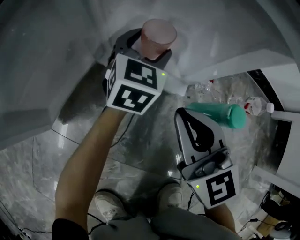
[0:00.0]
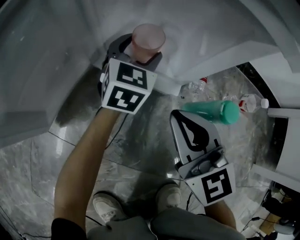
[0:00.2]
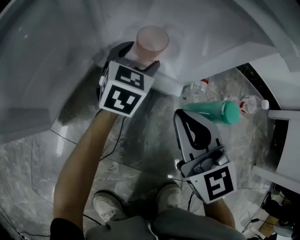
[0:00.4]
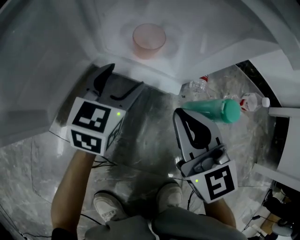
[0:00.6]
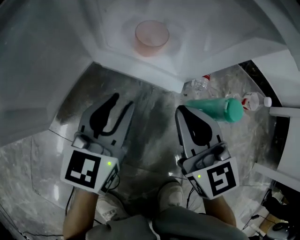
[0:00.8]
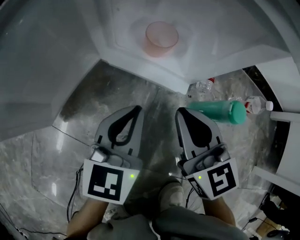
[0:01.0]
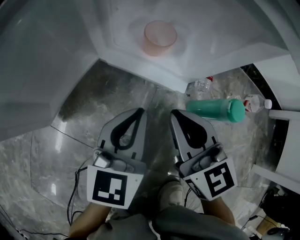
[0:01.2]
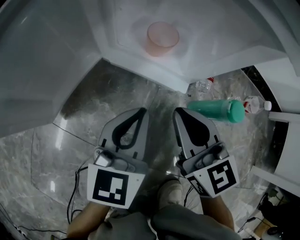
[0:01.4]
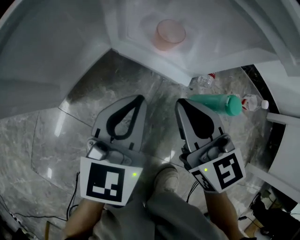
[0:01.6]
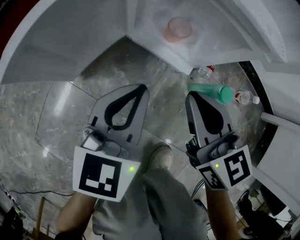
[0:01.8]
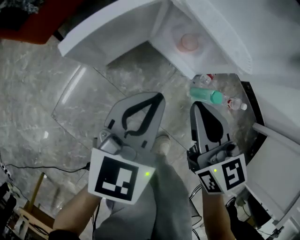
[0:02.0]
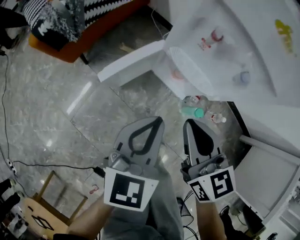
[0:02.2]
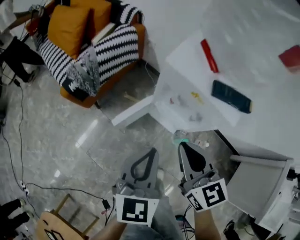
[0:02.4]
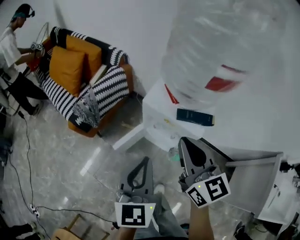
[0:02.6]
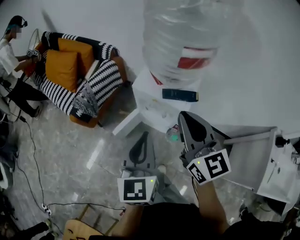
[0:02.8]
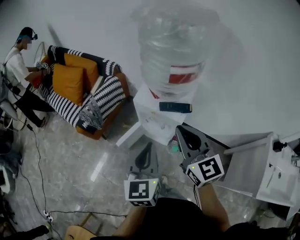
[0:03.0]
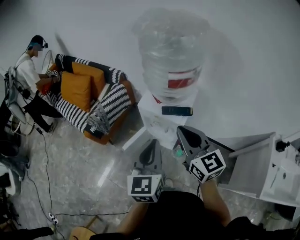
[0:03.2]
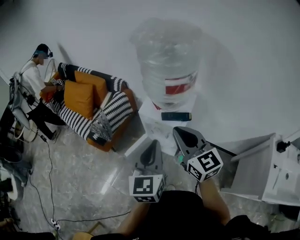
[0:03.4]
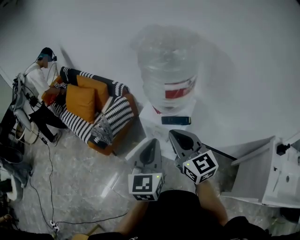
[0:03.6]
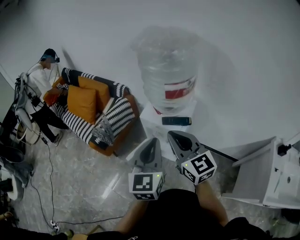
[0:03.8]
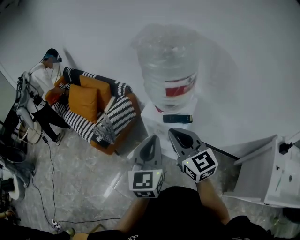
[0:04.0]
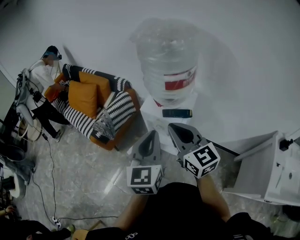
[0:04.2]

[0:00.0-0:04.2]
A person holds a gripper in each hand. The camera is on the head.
0:00.0 to 0:01.4: The left gripper moves backward, roughly 20 cm, swivels roughly 20 degrees, and closes.
0:01.4 to 0:02.8: Both grippers travel together upward, approximately 90 cm. The left gripper swivels roughly 20 degrees.
0:02.8 to 0:04.2: The right gripper moves backward, roughly 5 cm. The left gripper shifts roughly 10 cm upward.

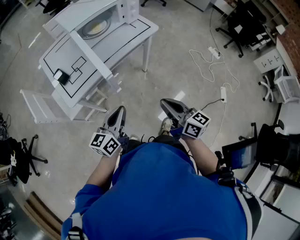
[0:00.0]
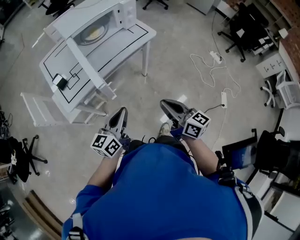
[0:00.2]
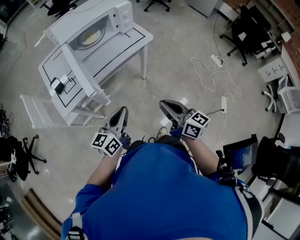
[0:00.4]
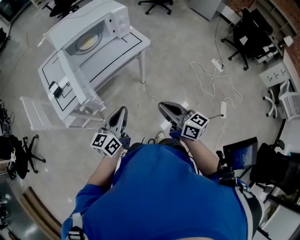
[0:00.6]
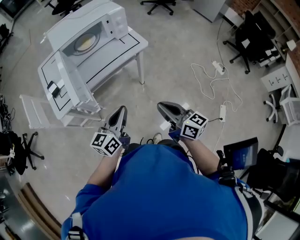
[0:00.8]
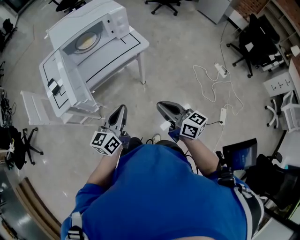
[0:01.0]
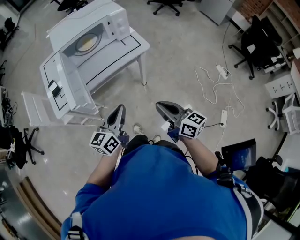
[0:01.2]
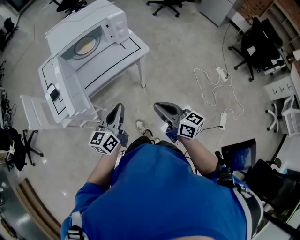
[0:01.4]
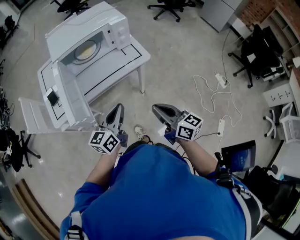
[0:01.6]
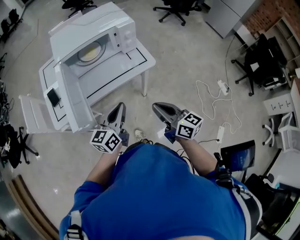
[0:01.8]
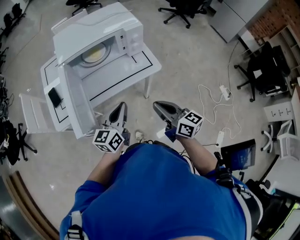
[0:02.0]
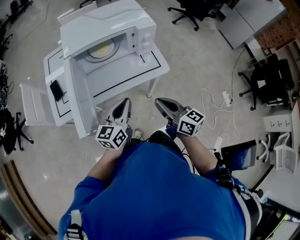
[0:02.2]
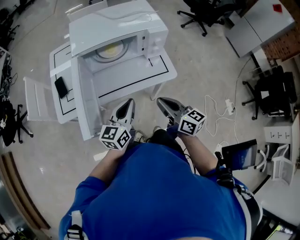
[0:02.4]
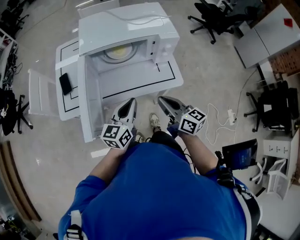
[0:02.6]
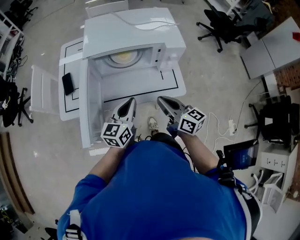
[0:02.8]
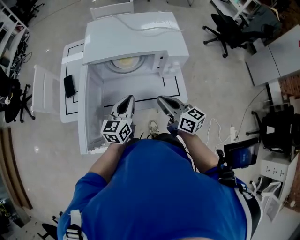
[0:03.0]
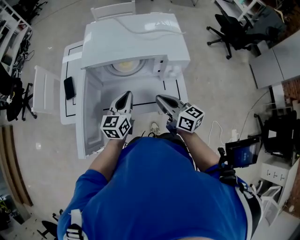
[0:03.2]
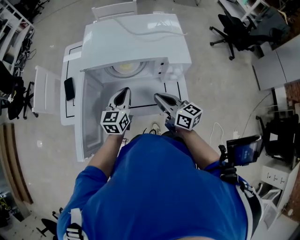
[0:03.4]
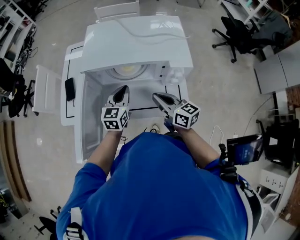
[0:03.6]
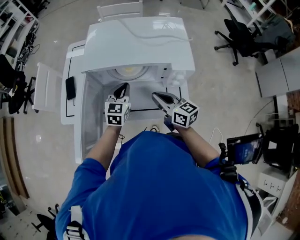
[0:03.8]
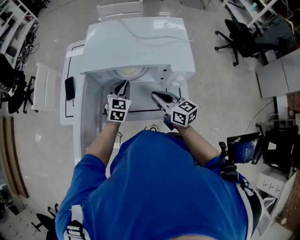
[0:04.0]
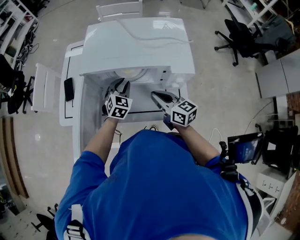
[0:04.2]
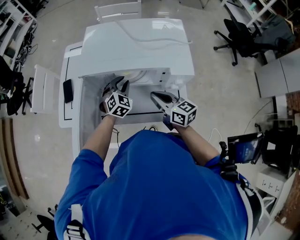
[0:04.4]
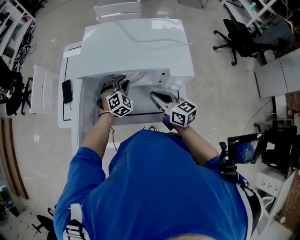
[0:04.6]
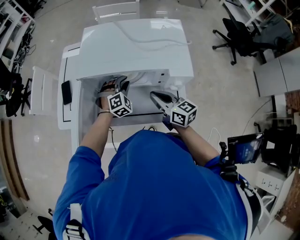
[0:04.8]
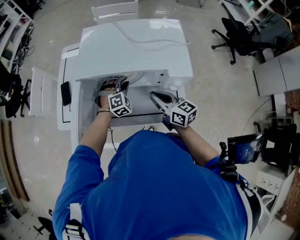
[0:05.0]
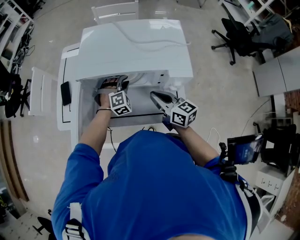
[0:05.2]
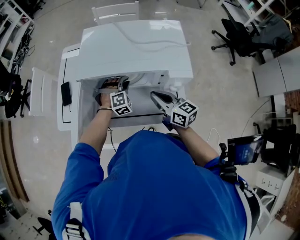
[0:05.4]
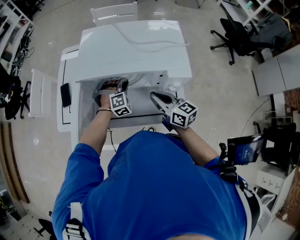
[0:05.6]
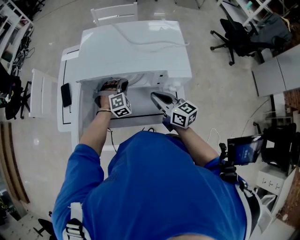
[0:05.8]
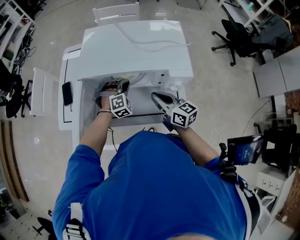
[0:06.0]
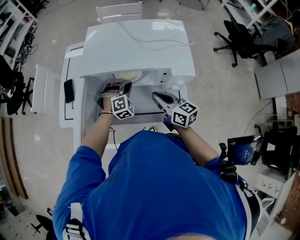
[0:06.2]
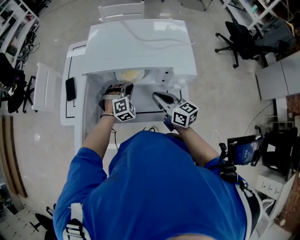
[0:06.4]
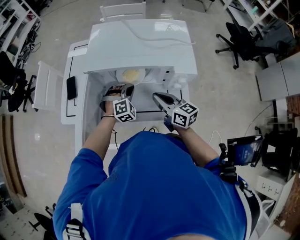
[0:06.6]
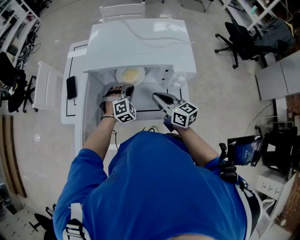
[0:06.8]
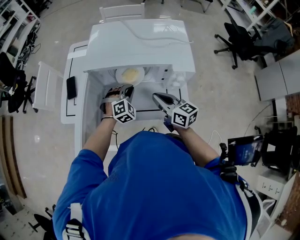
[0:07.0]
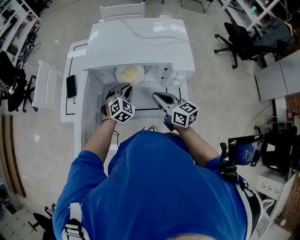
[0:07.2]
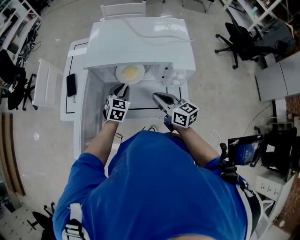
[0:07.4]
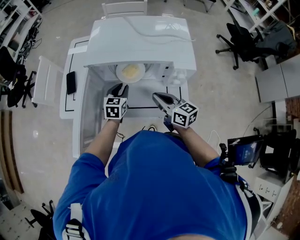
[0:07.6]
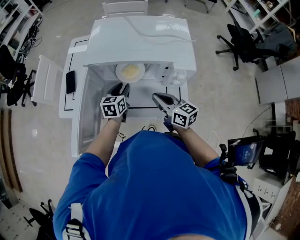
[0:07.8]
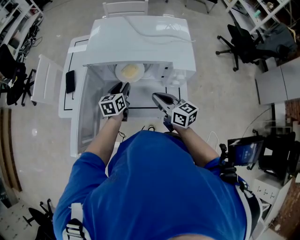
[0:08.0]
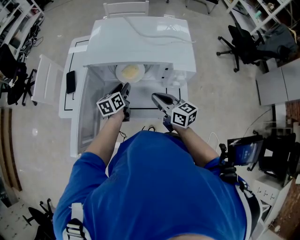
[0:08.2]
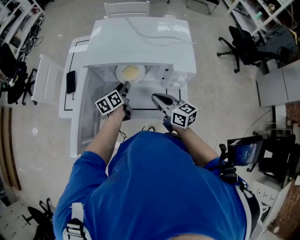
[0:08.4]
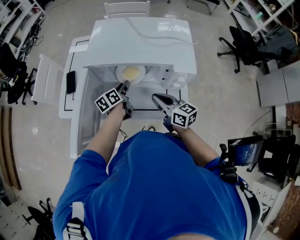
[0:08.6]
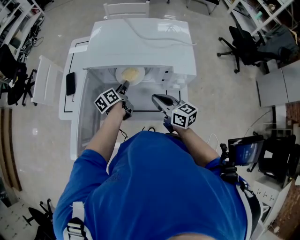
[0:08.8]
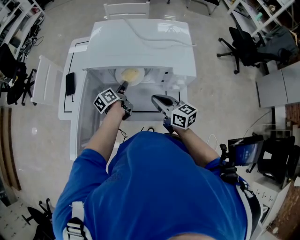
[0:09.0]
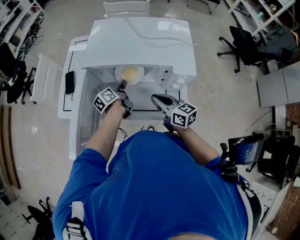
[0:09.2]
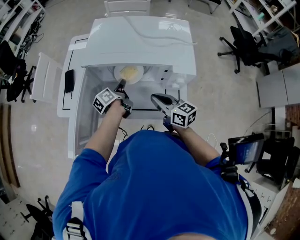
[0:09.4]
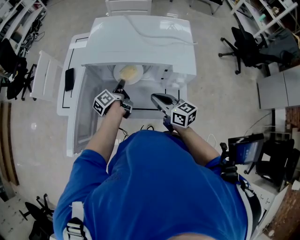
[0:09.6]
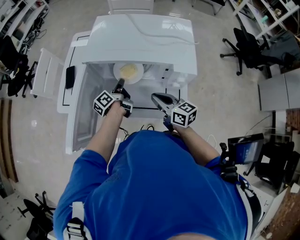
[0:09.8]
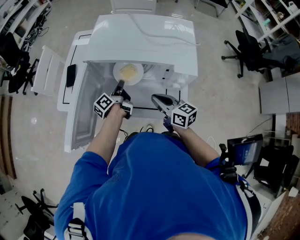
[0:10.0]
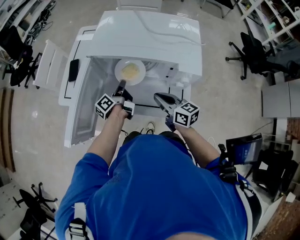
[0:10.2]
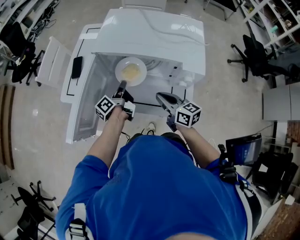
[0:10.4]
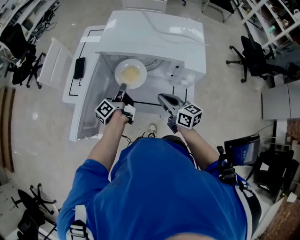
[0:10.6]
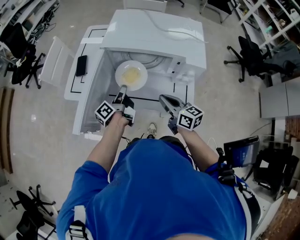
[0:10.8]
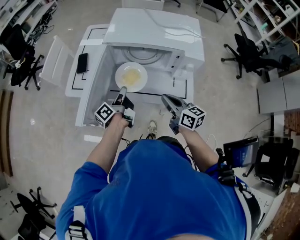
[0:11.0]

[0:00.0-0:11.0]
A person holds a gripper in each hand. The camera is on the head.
0:00.0 to 0:01.6: Both grippers travel together to the right and forward, about 25 cm.
0:01.6 to 0:03.2: The right gripper ends up approximately 30 cm from where it was, and turns by roughly 20 degrees. The left gripper moves about 25 cm, and changes its angle by approximately 30 degrees.
0:03.2 to 0:04.8: The left gripper goes roughly 15 cm forward, downward and to the right, and rolls clockwise, seen from behind, by roughly 70 degrees; the right gripper is displaced forward by approximately 10 cm.
0:04.8 to 0:06.2: The grippers move only a little.
0:06.2 to 0:07.8: The left gripper is displaced to the left by approximately 5 cm, rolls counterclockwise, seen from behind, by approximately 80 degrees, and opens.
0:07.8 to 0:09.4: The left gripper rolls counterclockwise, seen from behind, by some 50 degrees.
0:09.4 to 0:11.0: The left gripper is displaced backward and to the left by about 15 cm, and changes its angle by approximately 20 degrees. Meanwhile the right gripper travels backward by about 10 cm.

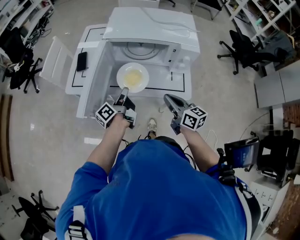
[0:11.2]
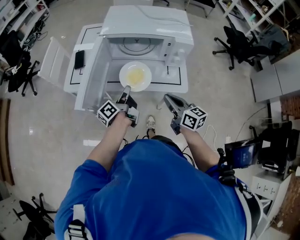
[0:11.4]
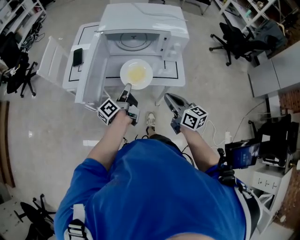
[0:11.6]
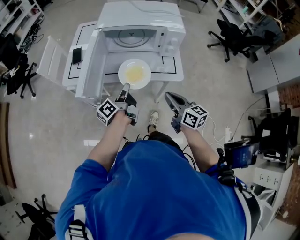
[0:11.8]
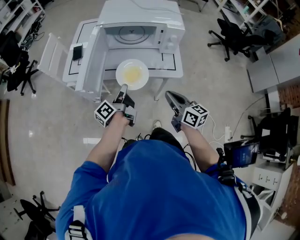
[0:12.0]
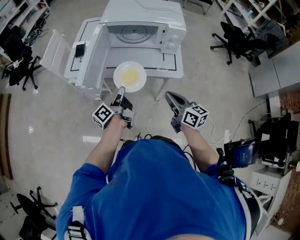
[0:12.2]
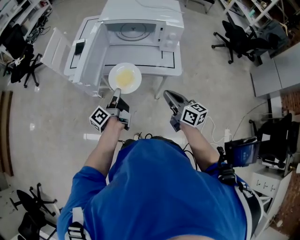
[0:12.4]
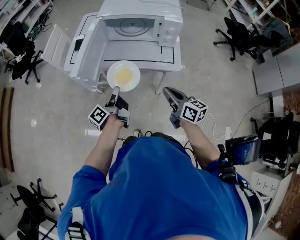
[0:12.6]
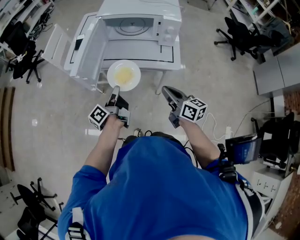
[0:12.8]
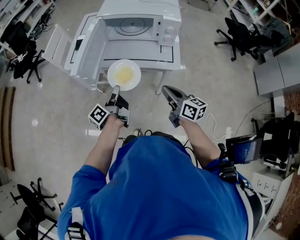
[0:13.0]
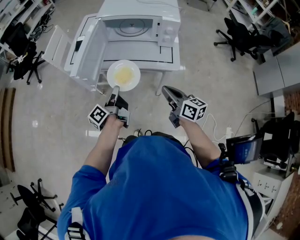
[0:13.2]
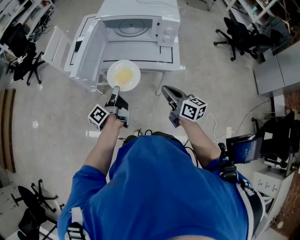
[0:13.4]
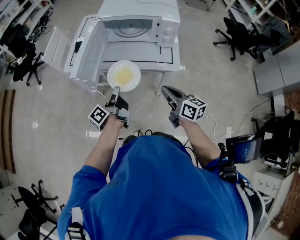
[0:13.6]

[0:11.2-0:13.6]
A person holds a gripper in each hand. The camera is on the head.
0:11.2 to 0:12.4: The two grippers go some 15 cm backward.
0:12.4 to 0:13.6: The grippers stay close to where they were, moving slightly.

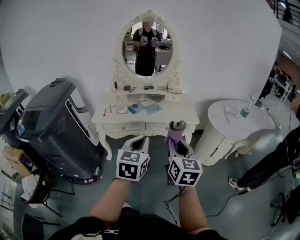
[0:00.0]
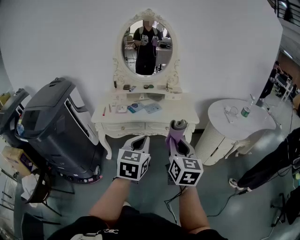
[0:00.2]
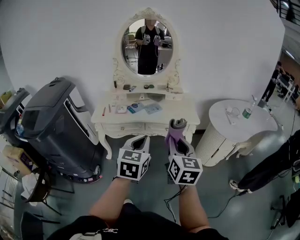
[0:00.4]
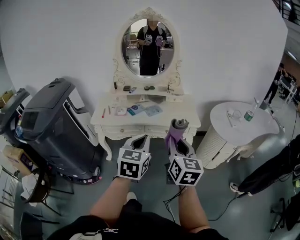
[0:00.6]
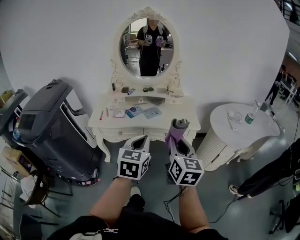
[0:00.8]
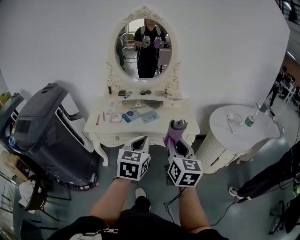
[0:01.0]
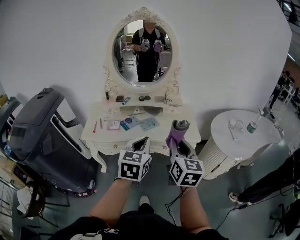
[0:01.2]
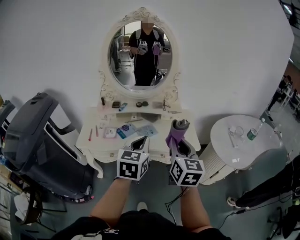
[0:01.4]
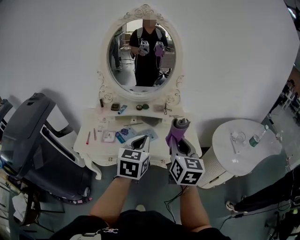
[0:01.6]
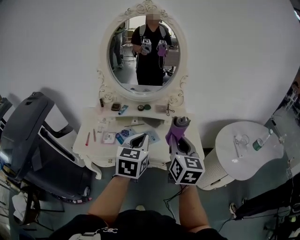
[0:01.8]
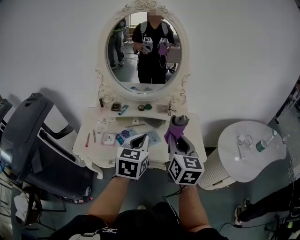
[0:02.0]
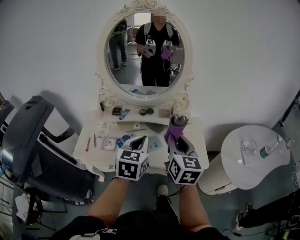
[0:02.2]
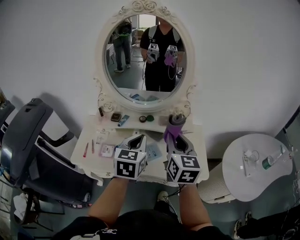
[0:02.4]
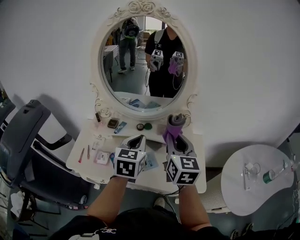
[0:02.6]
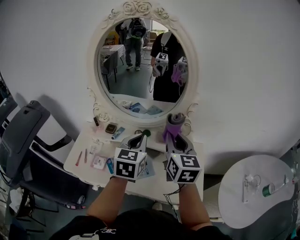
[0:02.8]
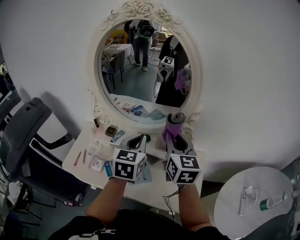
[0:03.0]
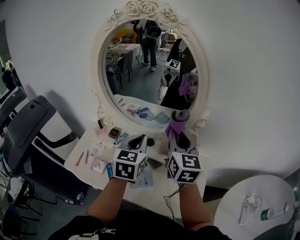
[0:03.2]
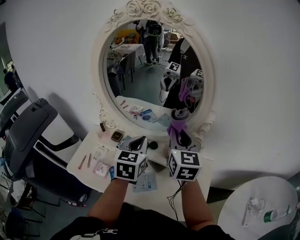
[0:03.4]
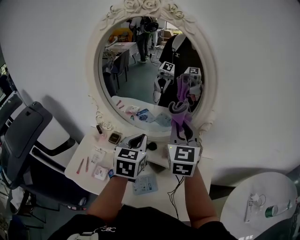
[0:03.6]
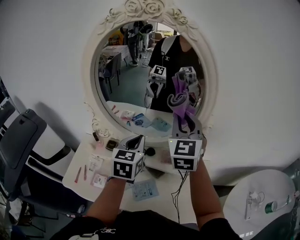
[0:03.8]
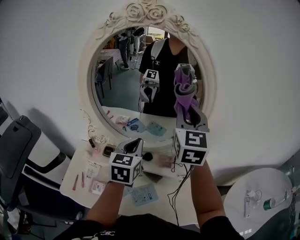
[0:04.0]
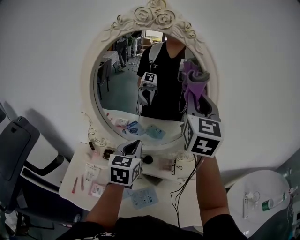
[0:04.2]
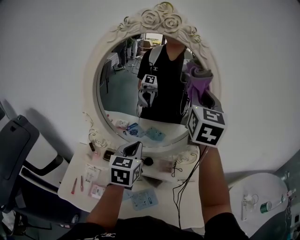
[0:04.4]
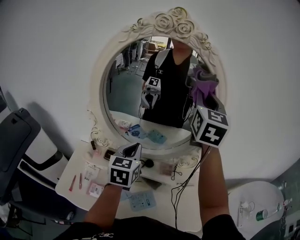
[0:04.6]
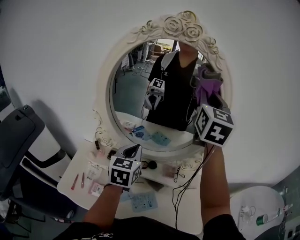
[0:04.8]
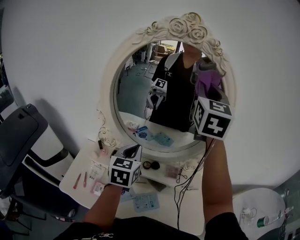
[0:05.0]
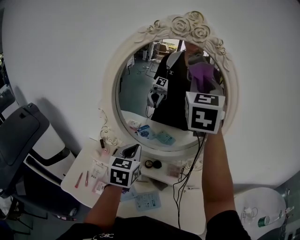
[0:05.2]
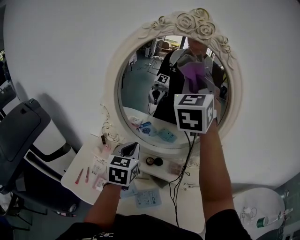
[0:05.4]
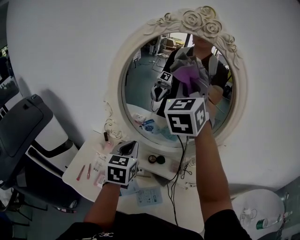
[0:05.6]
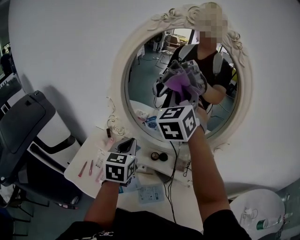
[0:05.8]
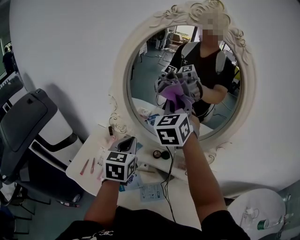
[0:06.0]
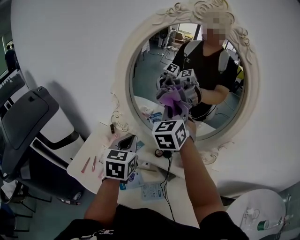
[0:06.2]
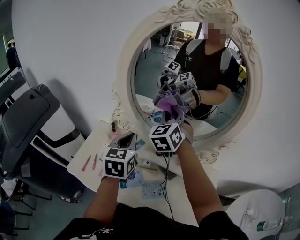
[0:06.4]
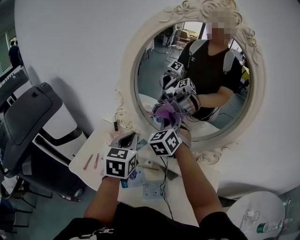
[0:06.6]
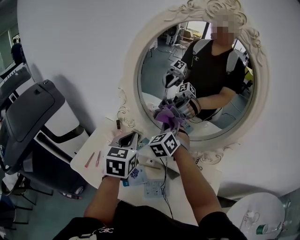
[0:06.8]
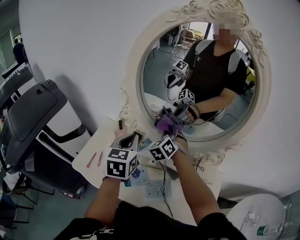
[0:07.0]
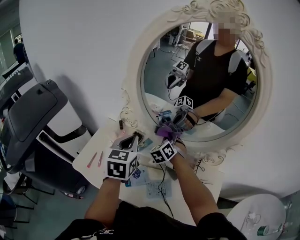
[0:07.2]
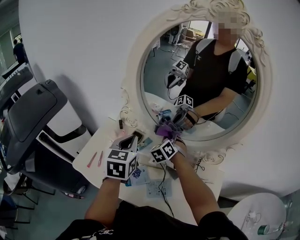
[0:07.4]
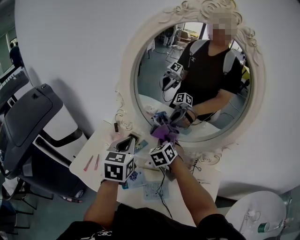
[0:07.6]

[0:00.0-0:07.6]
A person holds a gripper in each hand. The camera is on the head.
0:00.0 to 0:01.6: The two grippers go about 35 cm forward.
0:01.6 to 0:03.0: Both grippers move forward, about 35 cm.
0:03.0 to 0:04.6: The right gripper goes about 25 cm upward and forward, and turns by some 30 degrees, while the left gripper travels to the left and forward by roughly 15 cm.
0:04.6 to 0:06.0: The left gripper shifts roughly 10 cm to the left. Meanwhile the right gripper goes roughly 20 cm to the left and downward, and swivels some 30 degrees.
0:06.0 to 0:07.6: The right gripper heads downward, covering roughly 25 cm, and swivels some 30 degrees.
